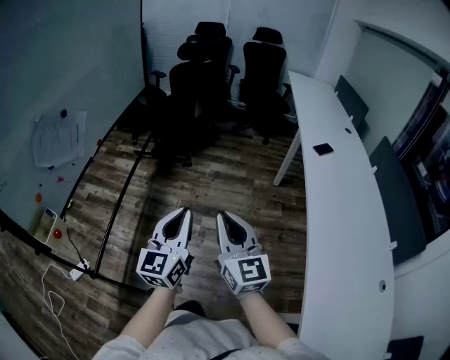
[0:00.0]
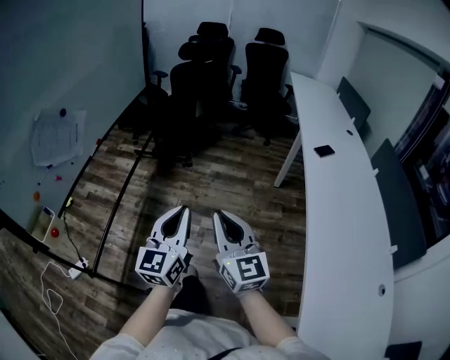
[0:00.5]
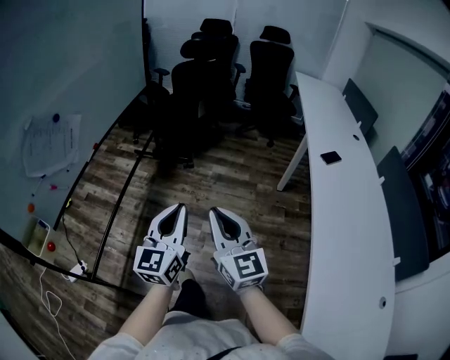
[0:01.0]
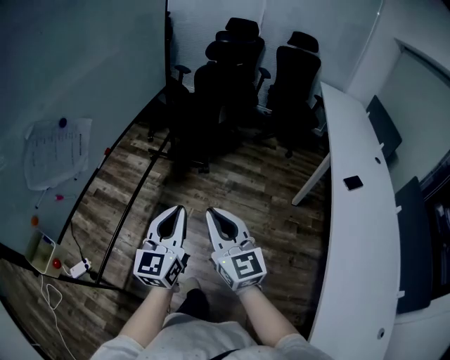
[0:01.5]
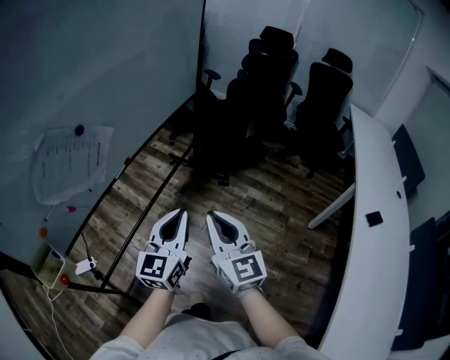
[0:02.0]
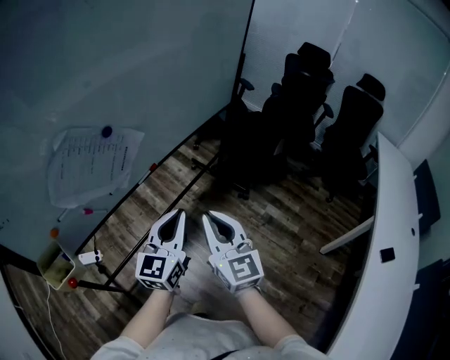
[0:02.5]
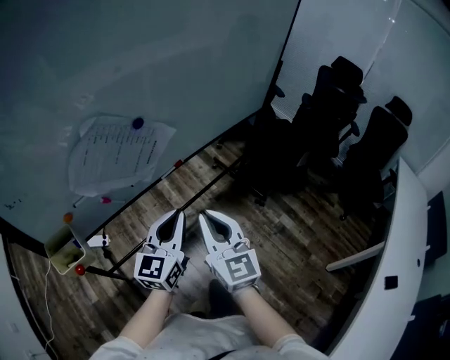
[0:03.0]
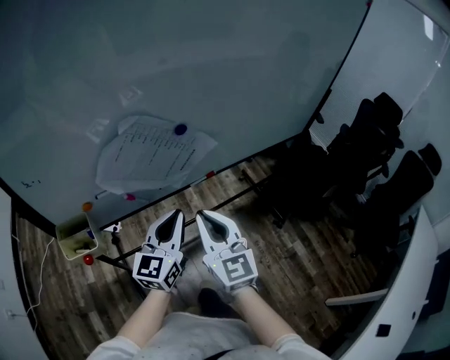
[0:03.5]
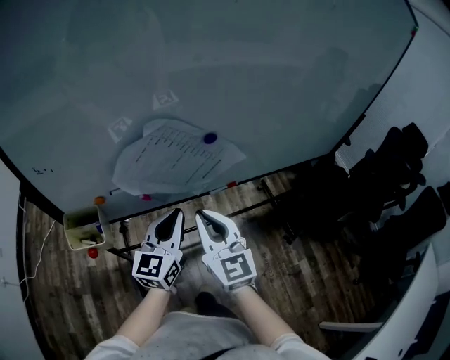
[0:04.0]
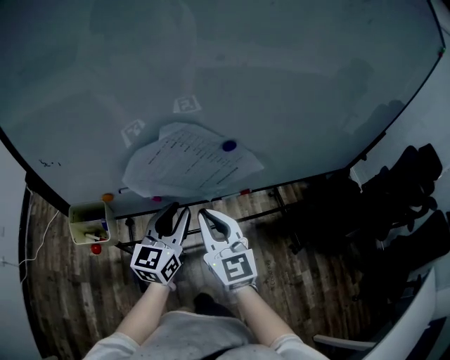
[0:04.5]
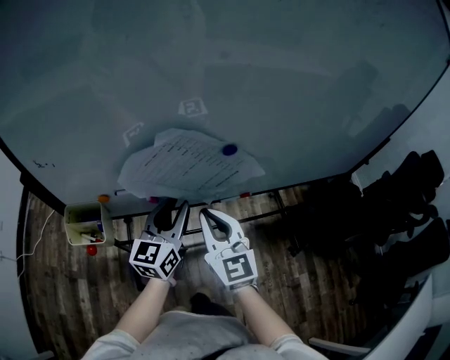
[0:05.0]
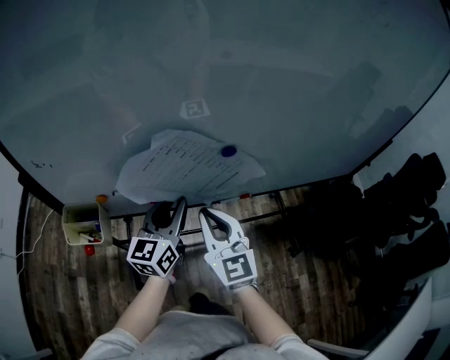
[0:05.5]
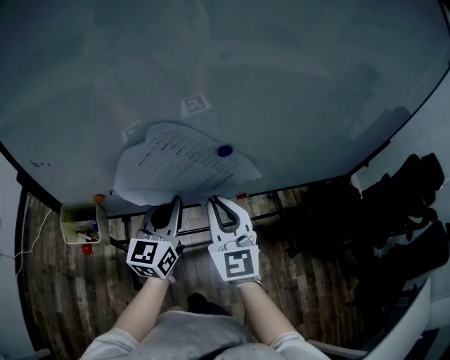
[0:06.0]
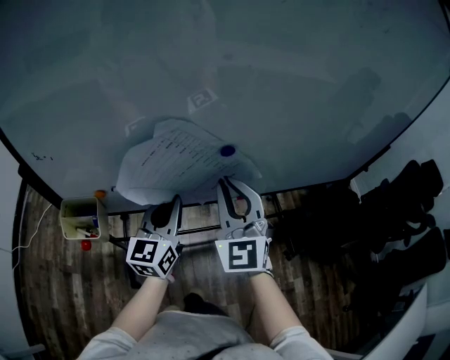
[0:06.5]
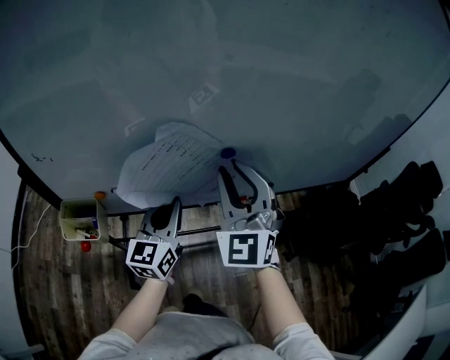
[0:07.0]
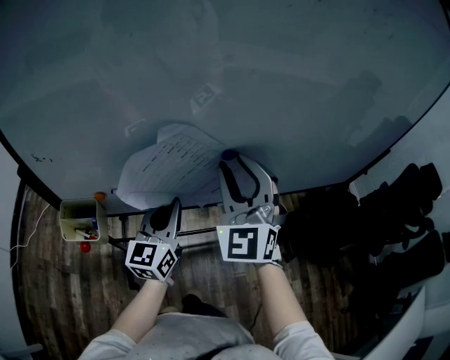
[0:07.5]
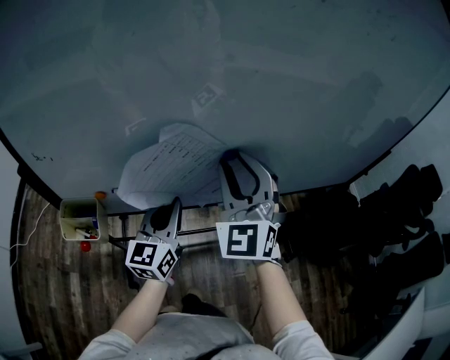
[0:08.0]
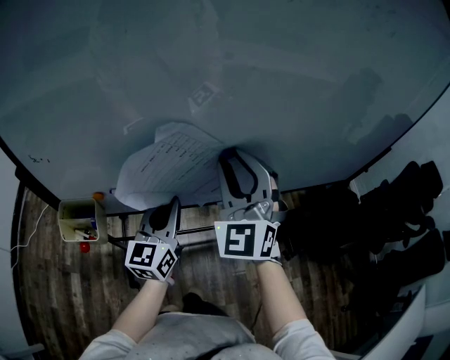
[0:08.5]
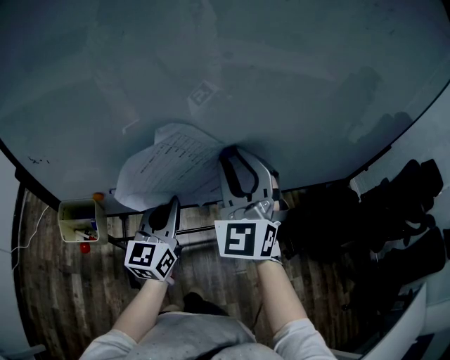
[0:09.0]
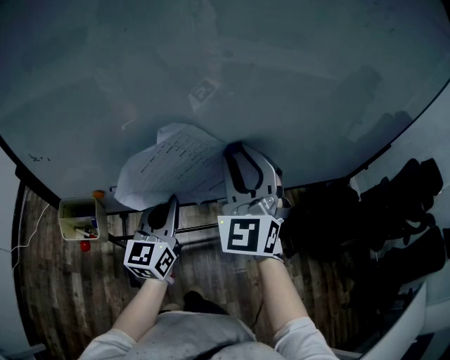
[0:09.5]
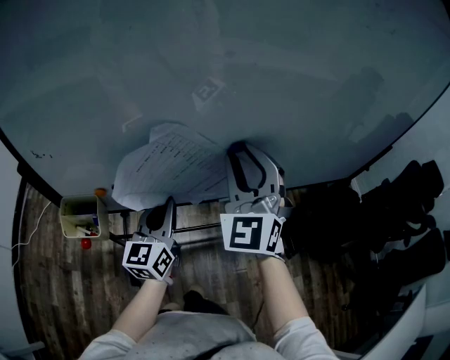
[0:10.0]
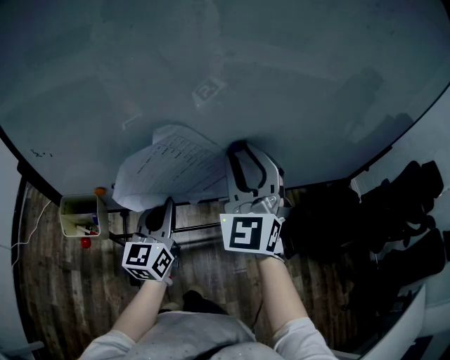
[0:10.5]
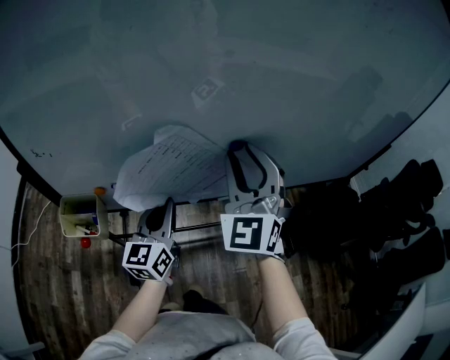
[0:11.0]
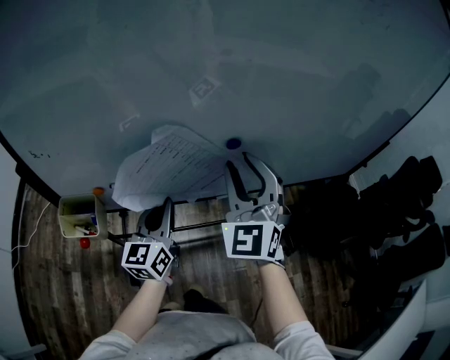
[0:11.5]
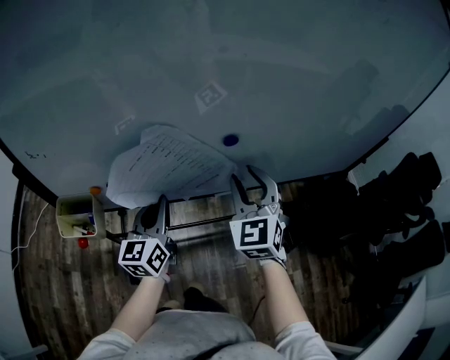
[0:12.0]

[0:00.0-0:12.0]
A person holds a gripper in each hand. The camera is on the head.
0:00.0 to 0:02.0: Both grippers travel together forward and to the left, approximately 35 cm. The right gripper changes its angle by roughly 20 degrees.
0:02.0 to 0:04.0: The left gripper shifts by about 30 cm, and rotates roughly 40 degrees; the right gripper changes place by roughly 35 cm, and changes its angle by roughly 50 degrees.
0:04.0 to 0:06.0: The grippers both shift forward by roughly 5 cm. The left gripper opens and closes again.
0:06.0 to 0:08.0: The right gripper goes some 10 cm upward, swivels roughly 30 degrees, and opens.
0:08.0 to 0:10.0: There are only small adjustments of the grippers.
0:10.0 to 0:12.0: The right gripper goes about 10 cm downward and to the right.

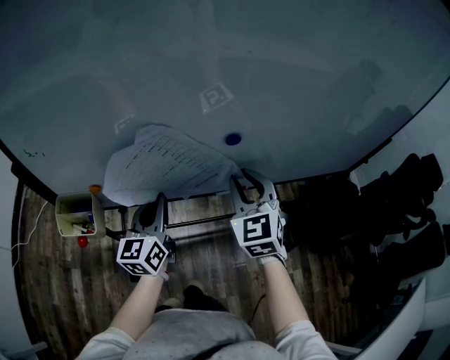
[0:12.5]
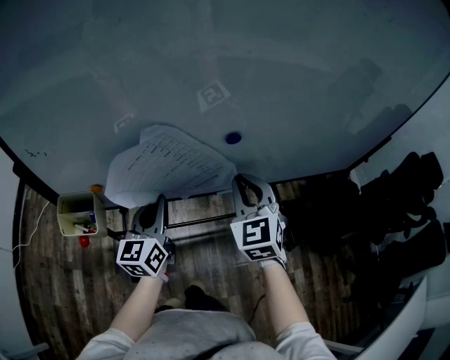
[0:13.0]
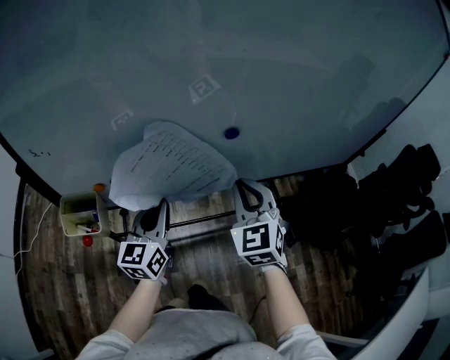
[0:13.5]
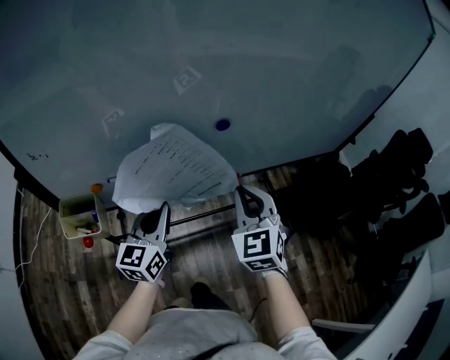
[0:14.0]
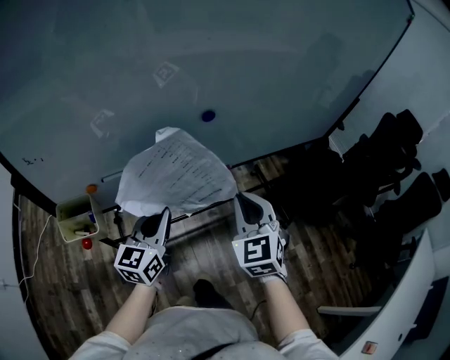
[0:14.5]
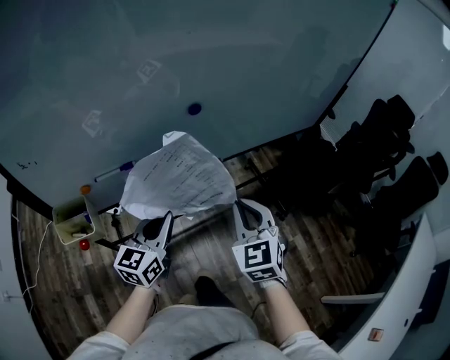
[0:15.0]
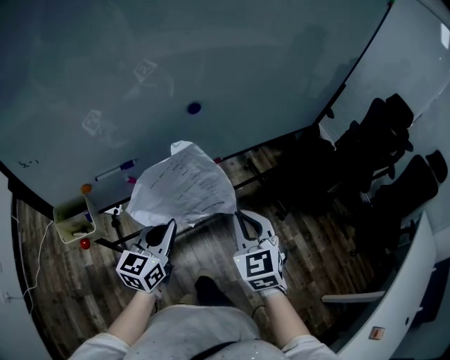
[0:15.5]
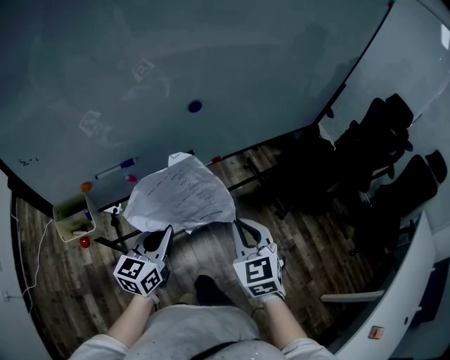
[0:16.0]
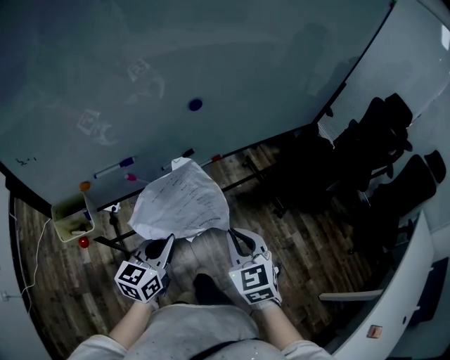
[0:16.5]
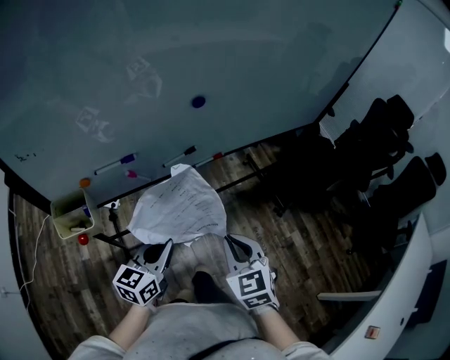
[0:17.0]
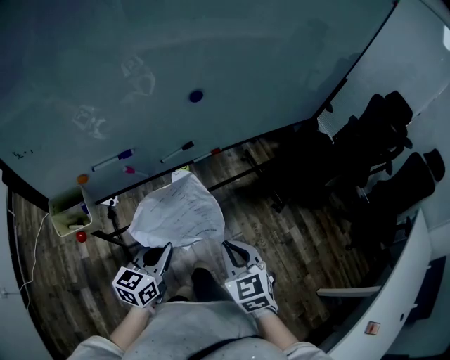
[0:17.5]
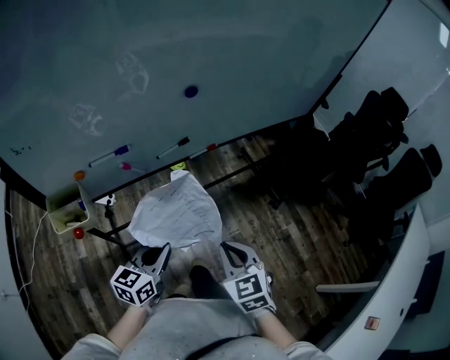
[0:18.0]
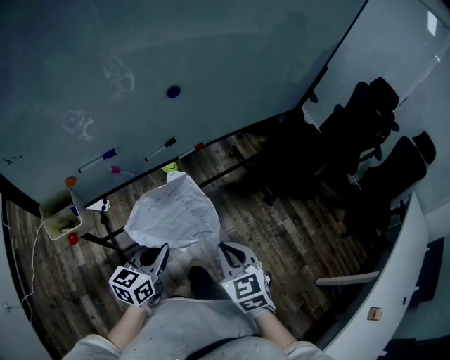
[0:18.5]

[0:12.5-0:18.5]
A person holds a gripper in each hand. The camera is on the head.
0:12.5 to 0:14.5: The left gripper shifts about 10 cm backward, and changes its angle by roughly 20 degrees; the right gripper travels backward by about 15 cm.
0:14.5 to 0:16.5: Both grippers move backward and downward, approximately 10 cm.
0:16.5 to 0:18.5: The left gripper shifts by approximately 5 cm; the right gripper travels backward by some 5 cm.

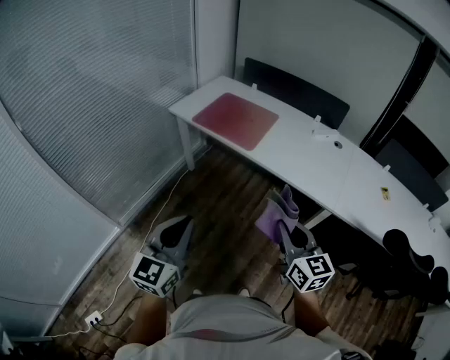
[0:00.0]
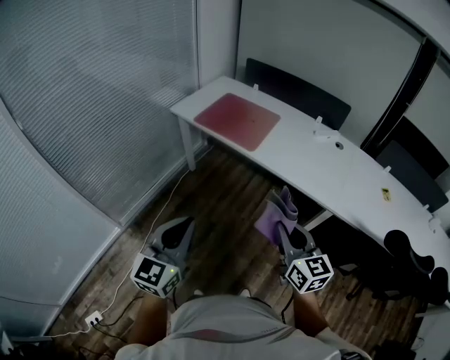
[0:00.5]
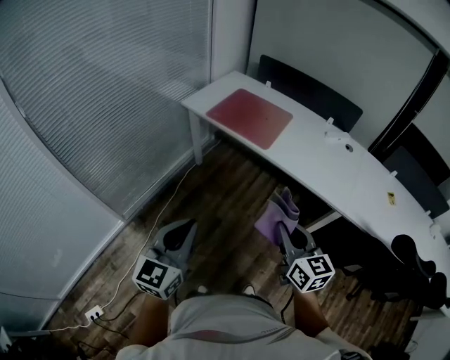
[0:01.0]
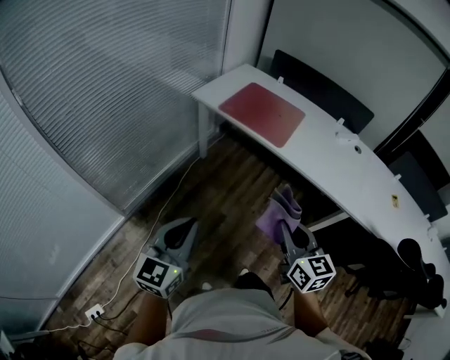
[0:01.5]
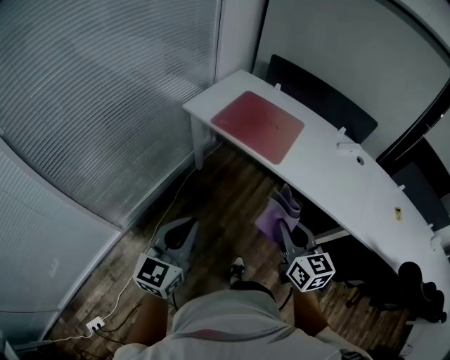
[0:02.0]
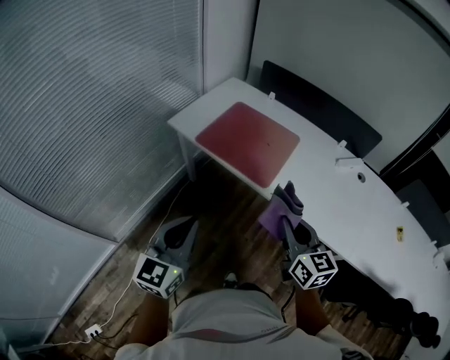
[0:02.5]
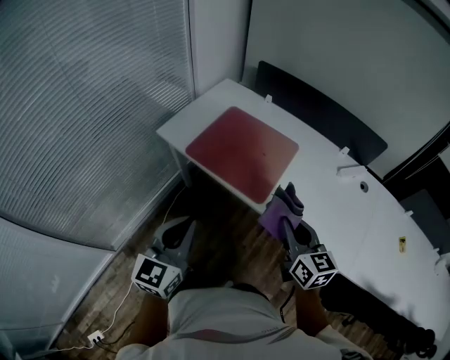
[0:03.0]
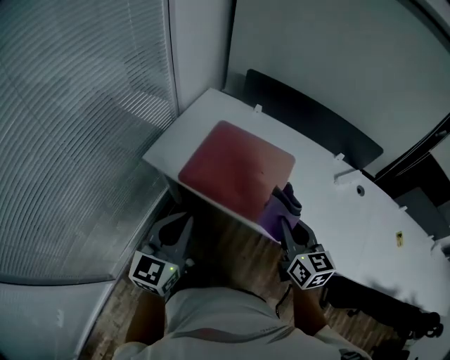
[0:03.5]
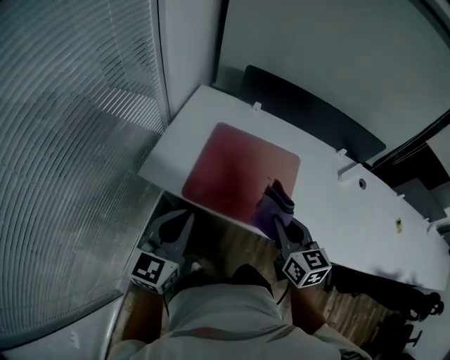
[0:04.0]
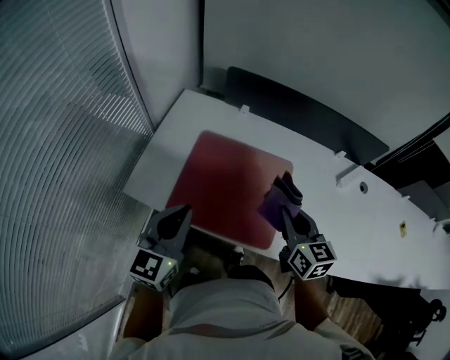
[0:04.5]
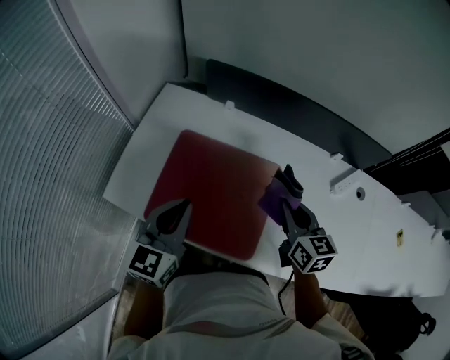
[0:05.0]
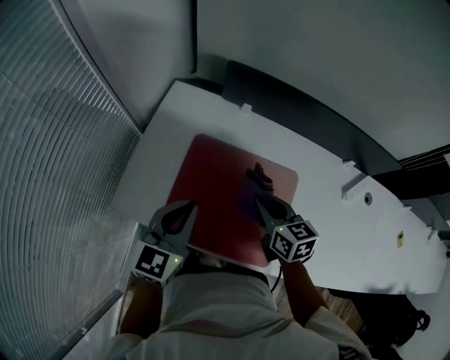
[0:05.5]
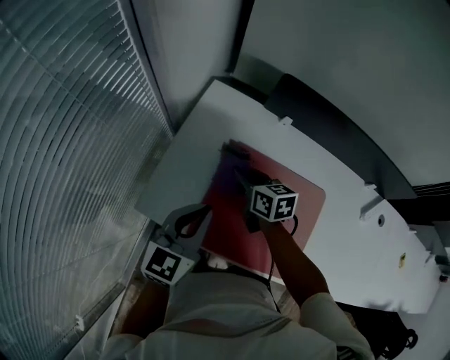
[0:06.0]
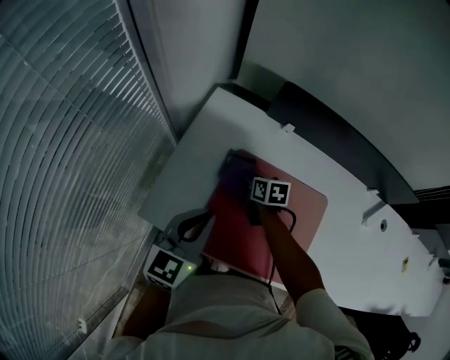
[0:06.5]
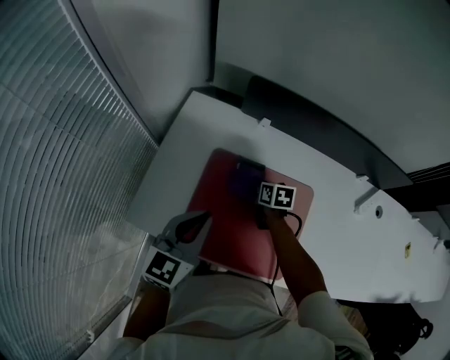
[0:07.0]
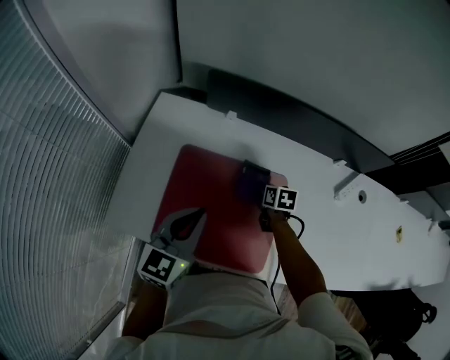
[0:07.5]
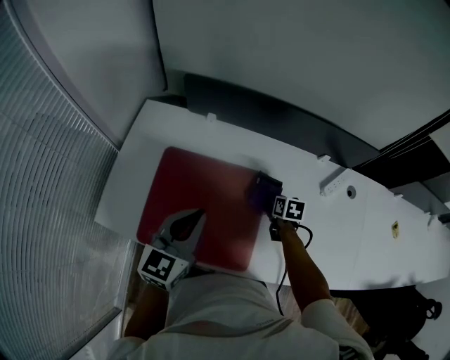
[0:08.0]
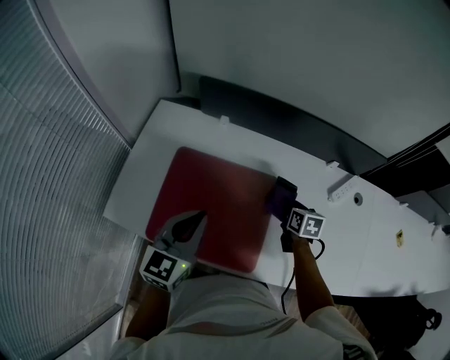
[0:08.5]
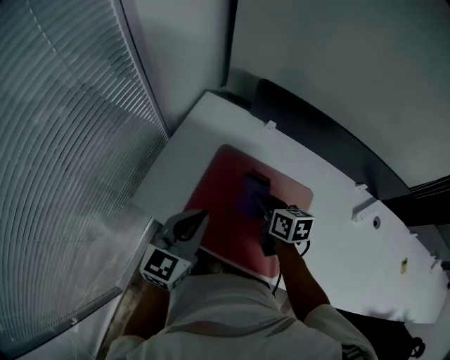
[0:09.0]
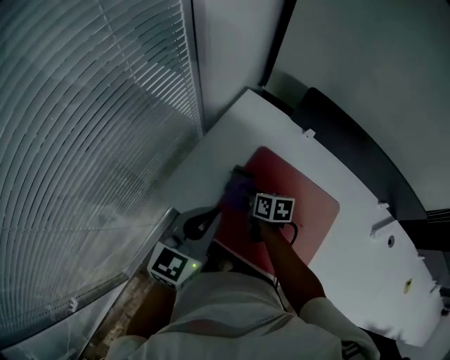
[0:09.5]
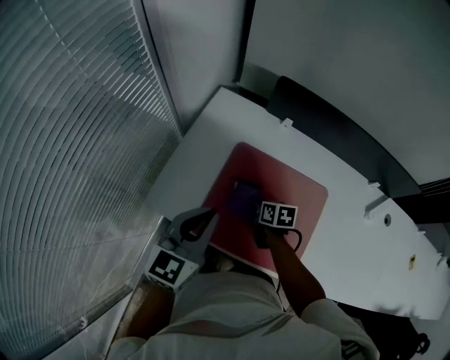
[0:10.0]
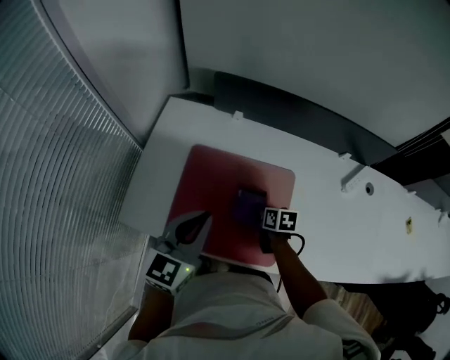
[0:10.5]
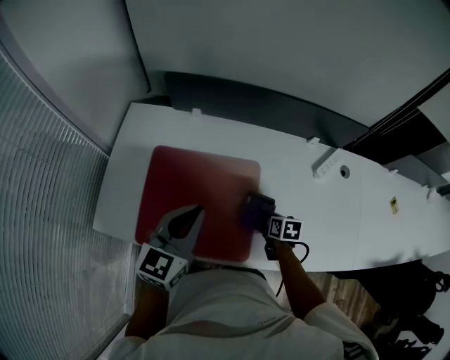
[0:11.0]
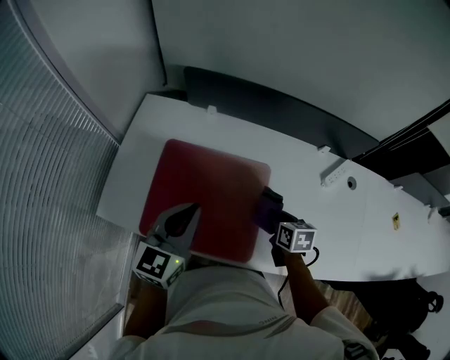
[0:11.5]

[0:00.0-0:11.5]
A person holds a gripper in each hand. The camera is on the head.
0:00.0 to 0:02.0: The two grippers go about 20 cm to the left and forward.
0:02.0 to 0:04.0: The two grippers travel together, forward, some 50 cm.
0:04.0 to 0:06.0: The left gripper goes some 30 cm forward. The right gripper heads forward and to the left, covering some 40 cm, and changes its angle by roughly 30 degrees.
0:06.0 to 0:07.5: The left gripper moves to the right, some 15 cm, while the right gripper is displaced to the right by some 30 cm, and turns by roughly 30 degrees.
0:07.5 to 0:09.5: The left gripper shifts by some 20 cm; the right gripper changes place by approximately 35 cm, and rotates approximately 30 degrees.
0:09.5 to 0:11.5: The right gripper travels downward and back again, roughly 5 cm each way, and rotates about 30 degrees. The left gripper moves some 25 cm.
